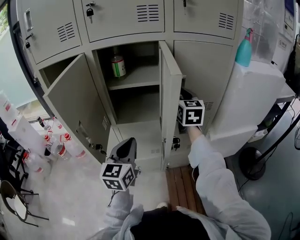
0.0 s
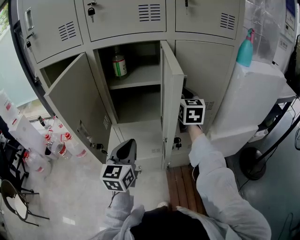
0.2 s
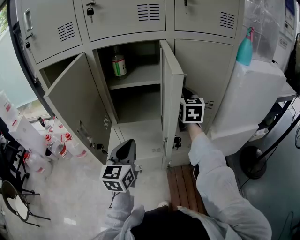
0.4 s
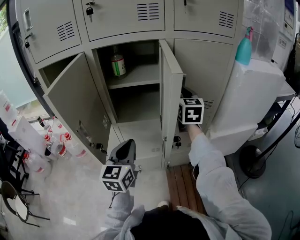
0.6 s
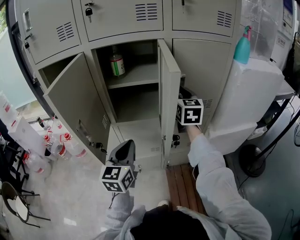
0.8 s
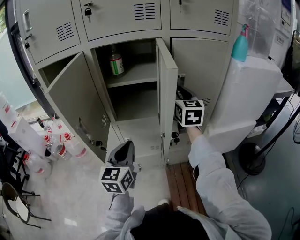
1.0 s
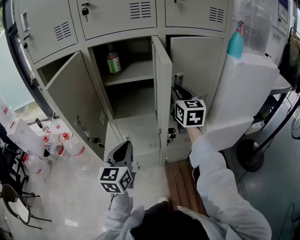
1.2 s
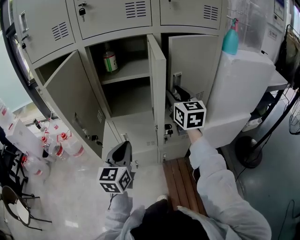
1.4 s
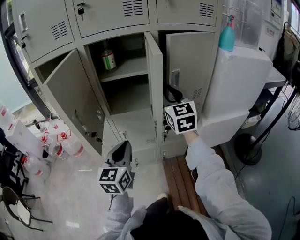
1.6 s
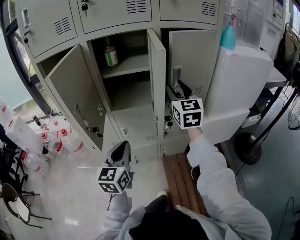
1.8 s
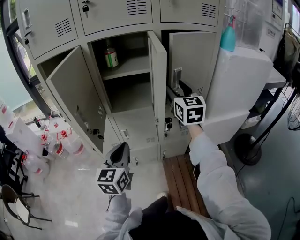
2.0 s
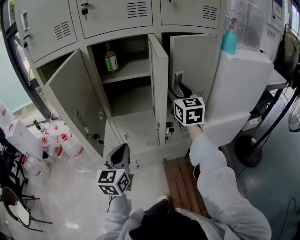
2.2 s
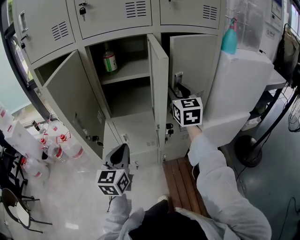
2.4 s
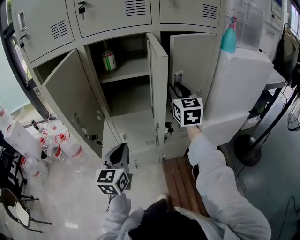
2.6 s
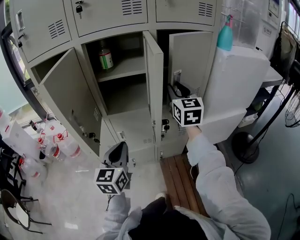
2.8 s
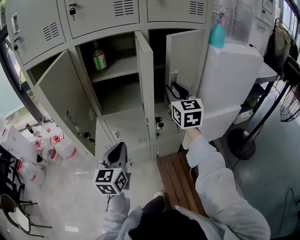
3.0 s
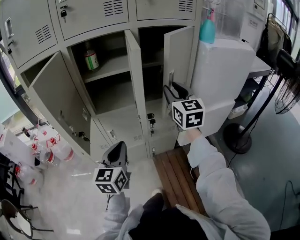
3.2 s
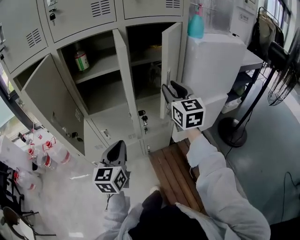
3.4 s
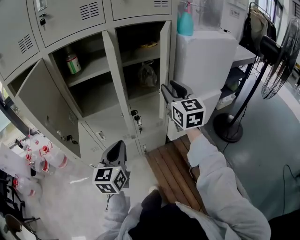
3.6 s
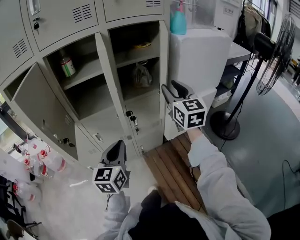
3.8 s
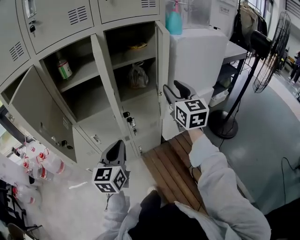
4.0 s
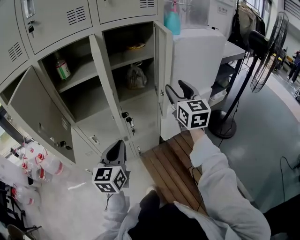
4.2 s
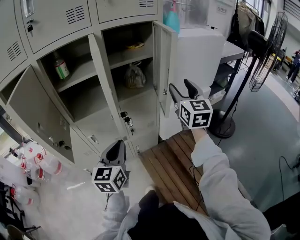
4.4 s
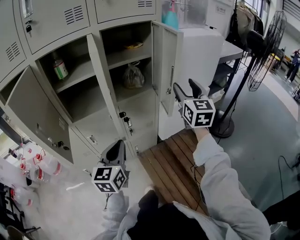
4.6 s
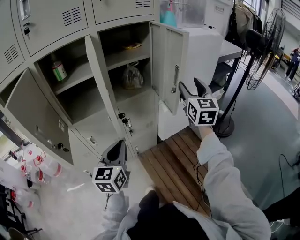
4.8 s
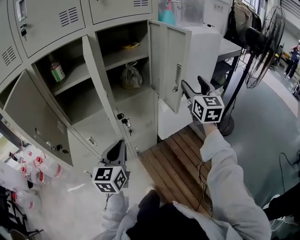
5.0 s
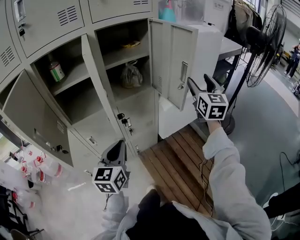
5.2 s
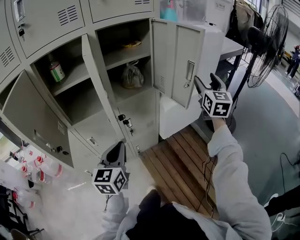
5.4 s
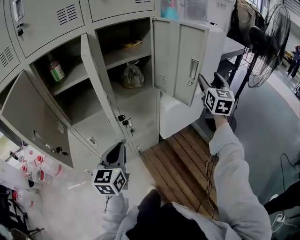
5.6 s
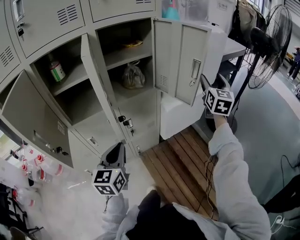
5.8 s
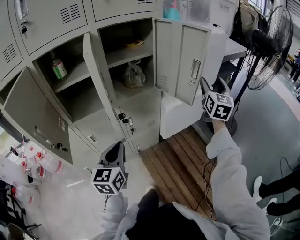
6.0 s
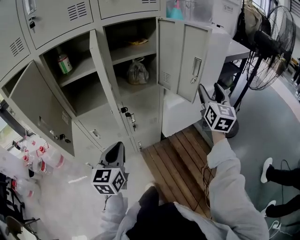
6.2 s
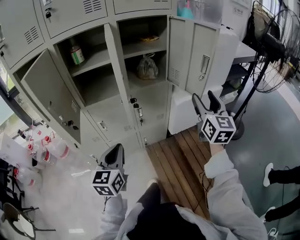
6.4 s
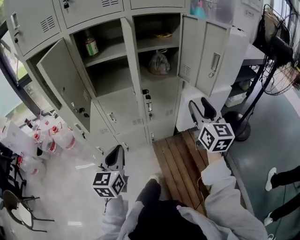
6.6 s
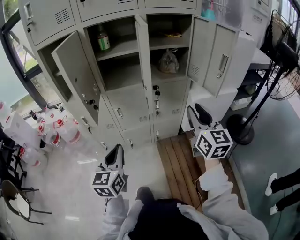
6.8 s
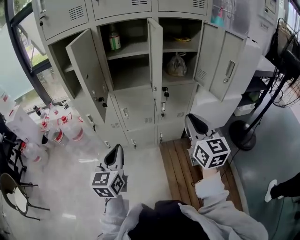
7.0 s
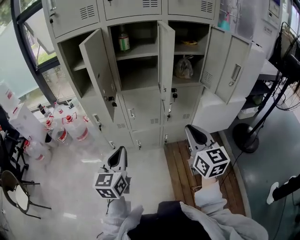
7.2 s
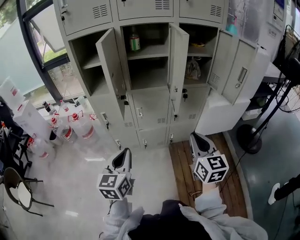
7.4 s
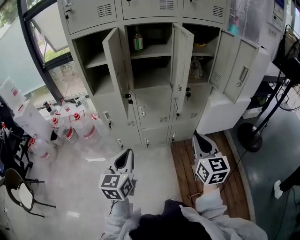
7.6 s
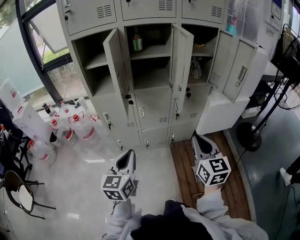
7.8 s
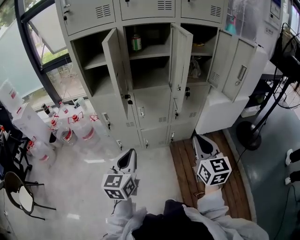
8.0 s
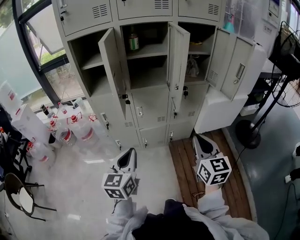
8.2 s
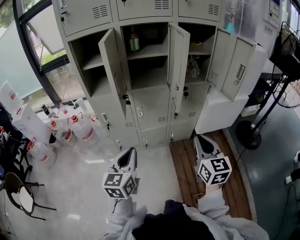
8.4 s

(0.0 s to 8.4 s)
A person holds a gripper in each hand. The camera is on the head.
0.0 s - 1.4 s: Both grippers travel together backward, some 5 cm.
1.4 s - 2.8 s: There are only small adjustments of the grippers.
2.8 s - 4.2 s: The right gripper heads to the right and backward, covering some 20 cm, while the left gripper goes about 10 cm to the right.
4.2 s - 5.6 s: The right gripper travels to the right by roughly 15 cm.
5.6 s - 7.0 s: The left gripper changes place by about 25 cm, and turns by approximately 20 degrees. Meanwhile the right gripper shifts by some 35 cm, swivels some 40 degrees, and closes its fingers.
7.0 s - 8.4 s: The right gripper shifts some 10 cm backward and to the left. The left gripper shifts by approximately 5 cm.

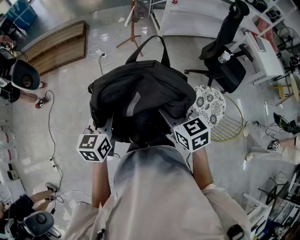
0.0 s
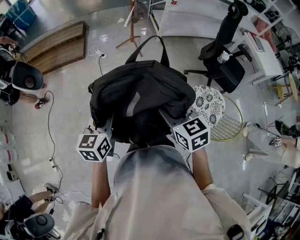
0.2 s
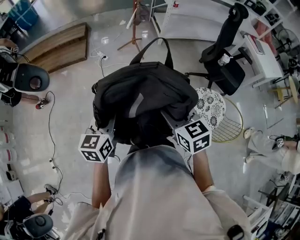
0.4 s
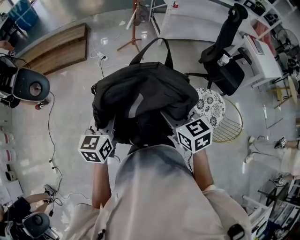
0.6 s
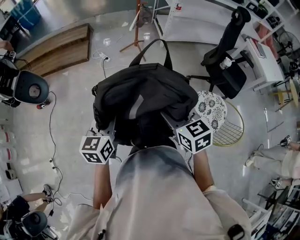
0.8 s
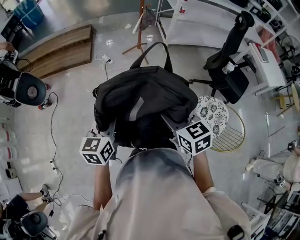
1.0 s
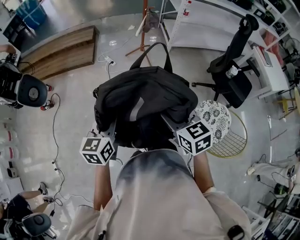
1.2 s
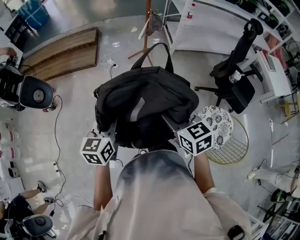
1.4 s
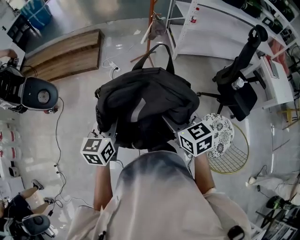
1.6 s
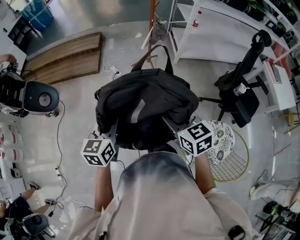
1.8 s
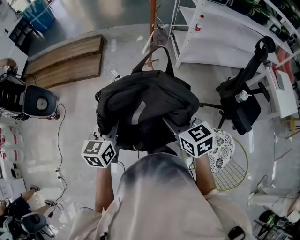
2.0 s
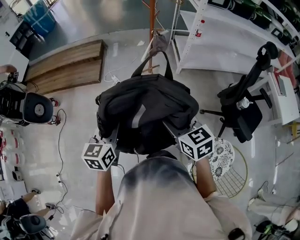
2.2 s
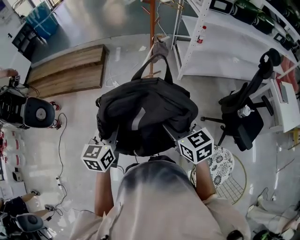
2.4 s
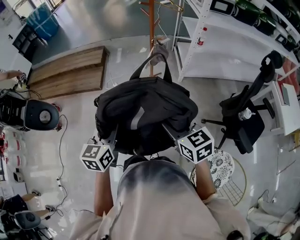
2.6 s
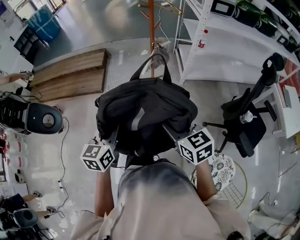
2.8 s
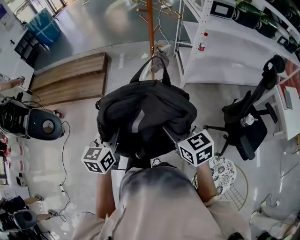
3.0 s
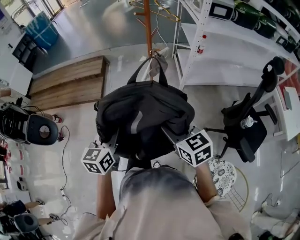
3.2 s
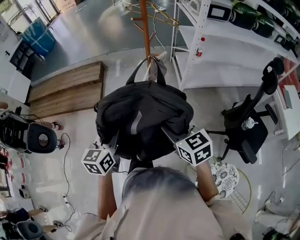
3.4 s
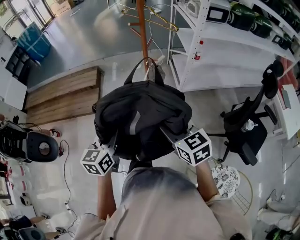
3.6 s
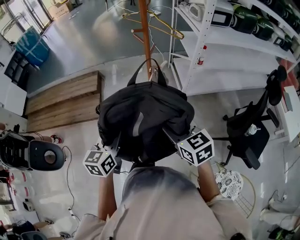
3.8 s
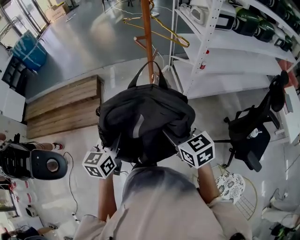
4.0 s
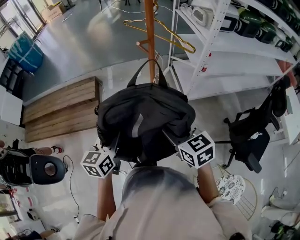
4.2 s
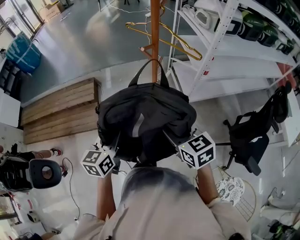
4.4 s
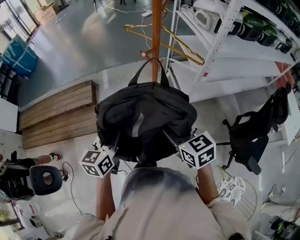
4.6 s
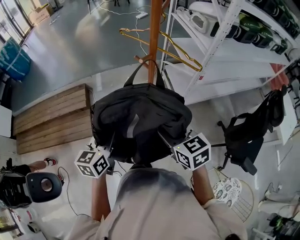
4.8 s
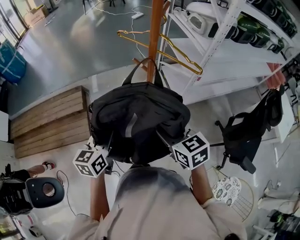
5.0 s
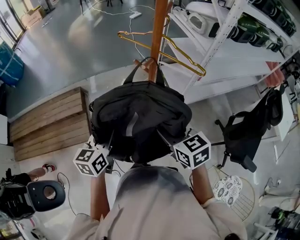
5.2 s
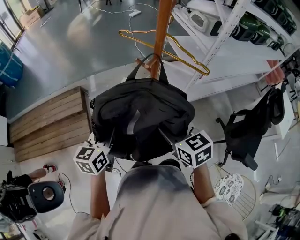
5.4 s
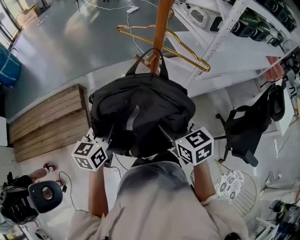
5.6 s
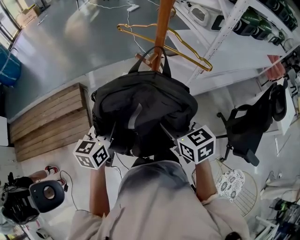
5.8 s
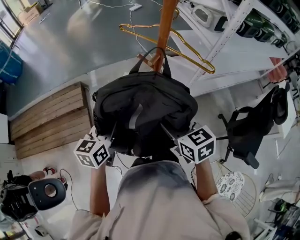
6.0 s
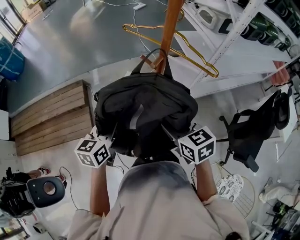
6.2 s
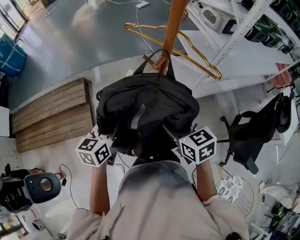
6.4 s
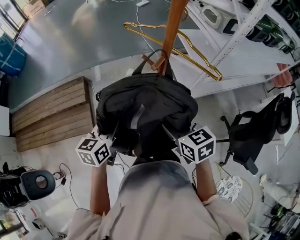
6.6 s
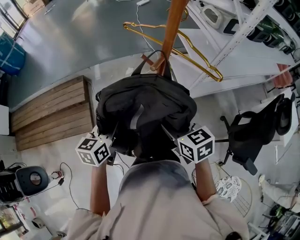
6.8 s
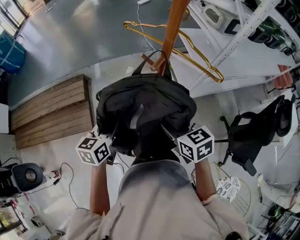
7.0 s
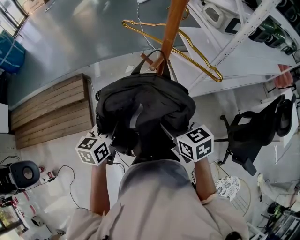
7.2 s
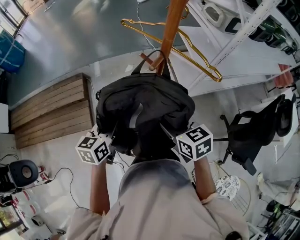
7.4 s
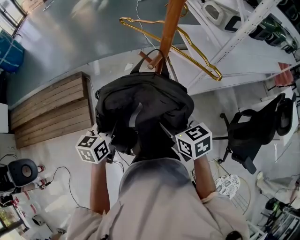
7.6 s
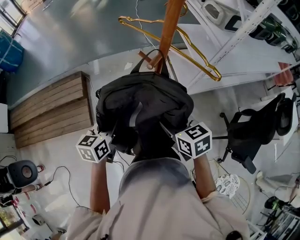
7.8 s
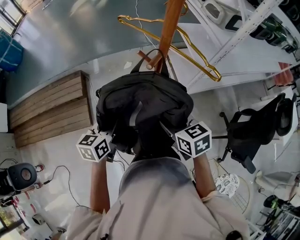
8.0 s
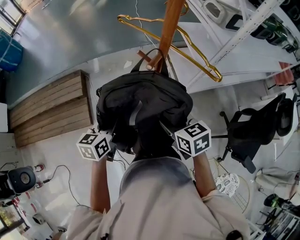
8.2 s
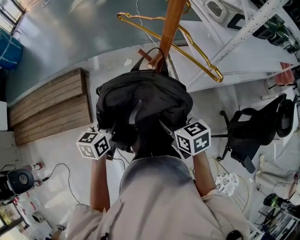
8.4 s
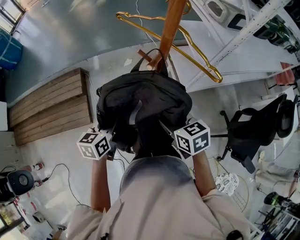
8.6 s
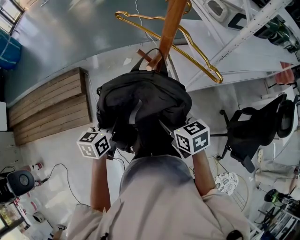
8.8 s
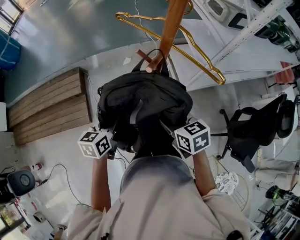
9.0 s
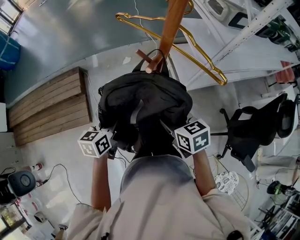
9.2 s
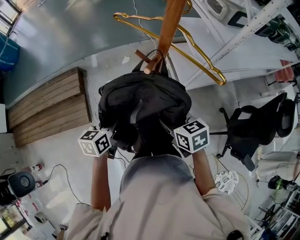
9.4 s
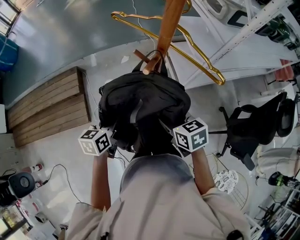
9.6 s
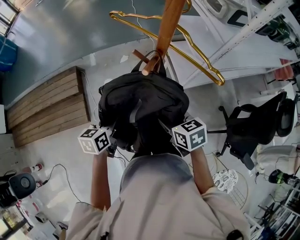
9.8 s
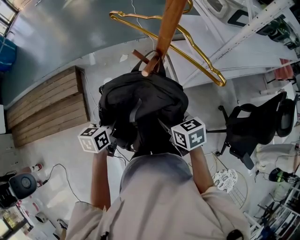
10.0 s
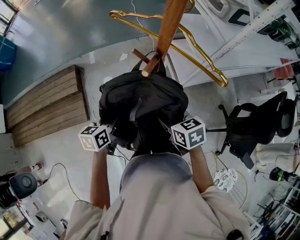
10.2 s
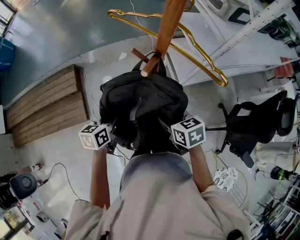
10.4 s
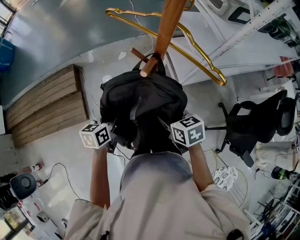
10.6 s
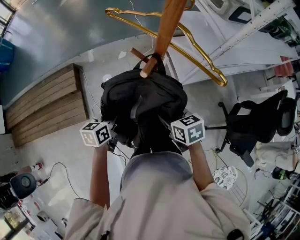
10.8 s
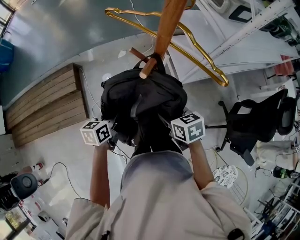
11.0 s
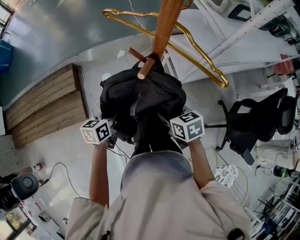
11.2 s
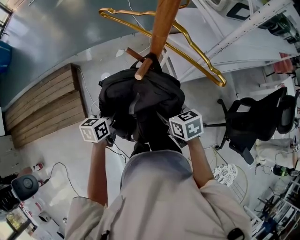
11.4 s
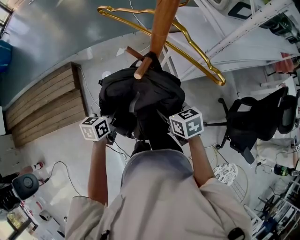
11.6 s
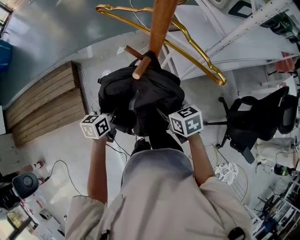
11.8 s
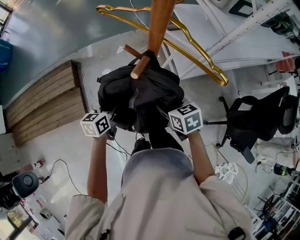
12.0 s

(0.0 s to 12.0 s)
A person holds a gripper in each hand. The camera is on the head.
0.0 s - 1.6 s: The grippers both shift forward by about 15 cm.
1.6 s - 3.0 s: Both grippers travel together forward and to the right, approximately 30 cm.
3.0 s - 4.4 s: Both grippers move forward, roughly 35 cm.
4.4 s - 6.0 s: Both grippers move forward, roughly 15 cm.
6.0 s - 7.6 s: The left gripper moves approximately 5 cm, while the right gripper shifts by roughly 5 cm.
7.6 s - 9.0 s: The grippers move only a little.
9.0 s - 10.4 s: The left gripper heads downward, covering approximately 5 cm.
10.4 s - 12.0 s: The left gripper moves some 5 cm, while the right gripper moves roughly 5 cm.

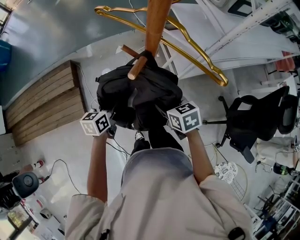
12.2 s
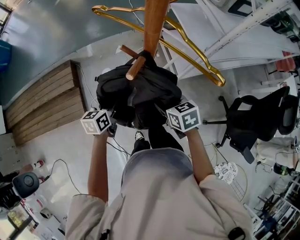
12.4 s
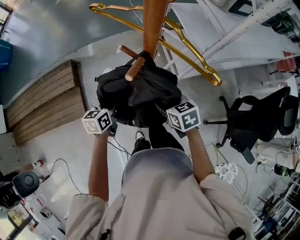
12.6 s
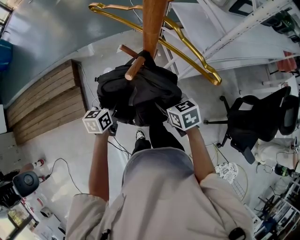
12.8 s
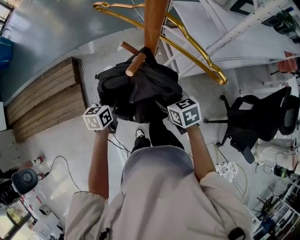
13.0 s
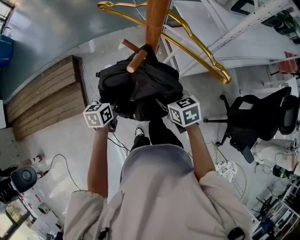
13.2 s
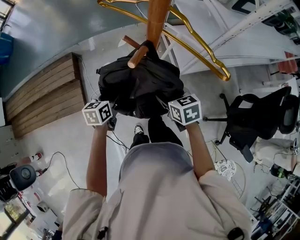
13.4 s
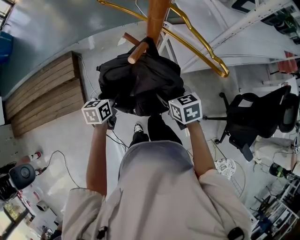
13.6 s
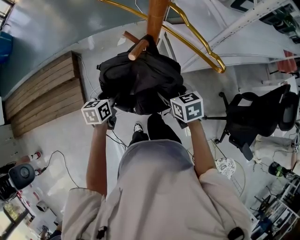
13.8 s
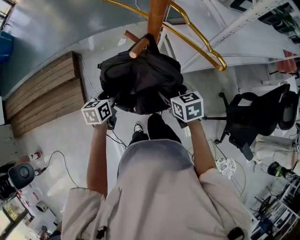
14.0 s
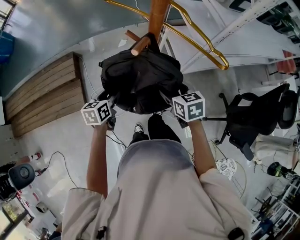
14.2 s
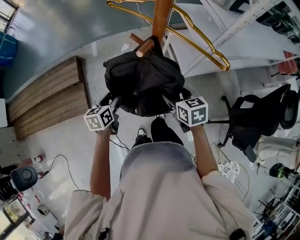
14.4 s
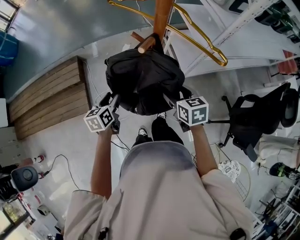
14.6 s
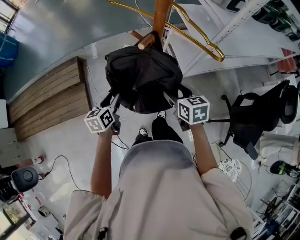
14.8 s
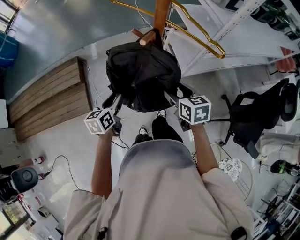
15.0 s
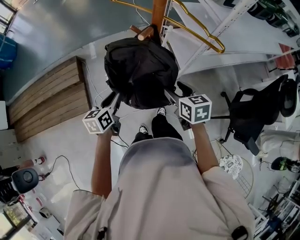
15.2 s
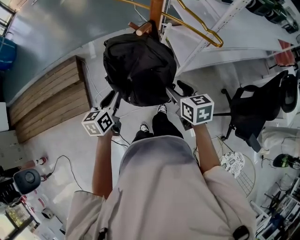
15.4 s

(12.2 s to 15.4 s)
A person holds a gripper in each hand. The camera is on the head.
12.2 s - 13.8 s: The left gripper opens.
13.8 s - 15.4 s: The left gripper moves backward and upward, about 10 cm, and closes; the right gripper goes approximately 5 cm backward.
